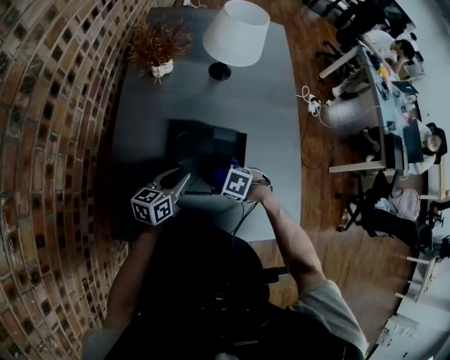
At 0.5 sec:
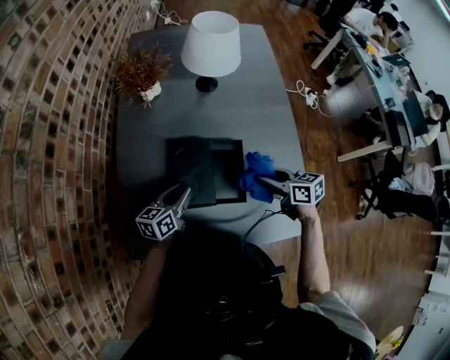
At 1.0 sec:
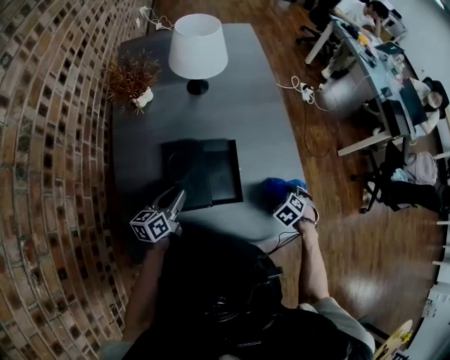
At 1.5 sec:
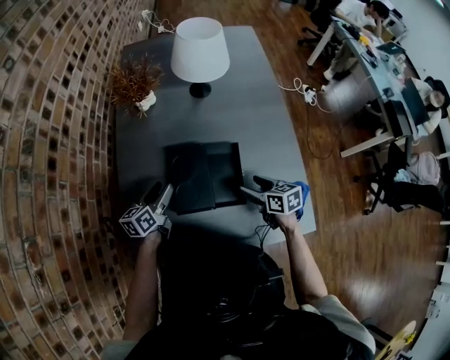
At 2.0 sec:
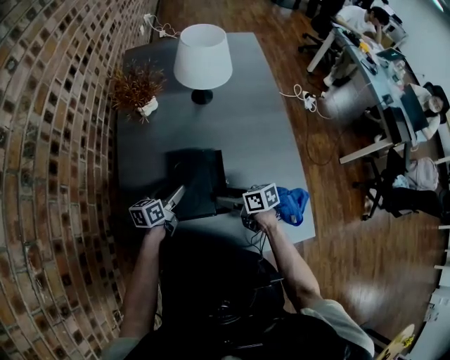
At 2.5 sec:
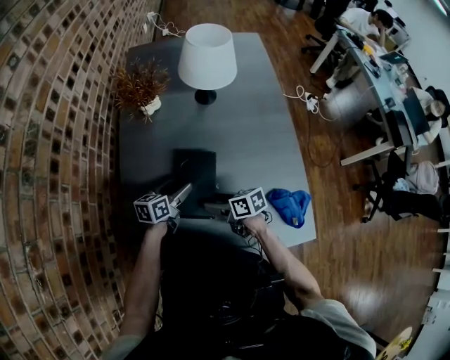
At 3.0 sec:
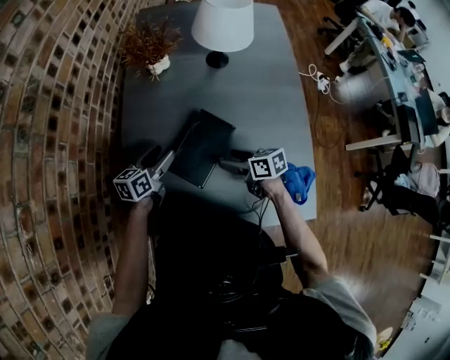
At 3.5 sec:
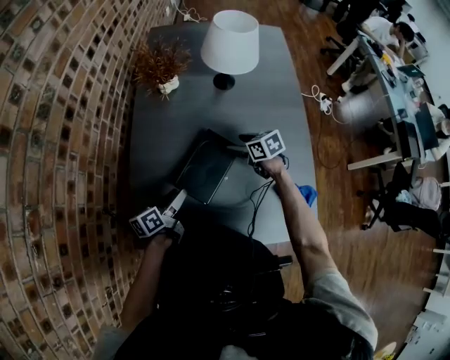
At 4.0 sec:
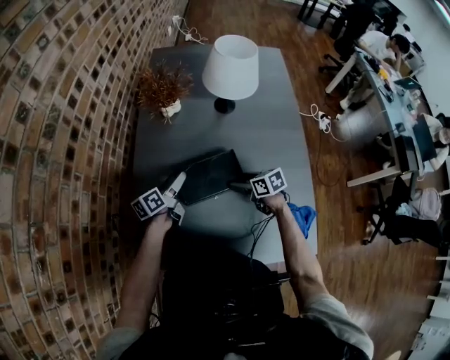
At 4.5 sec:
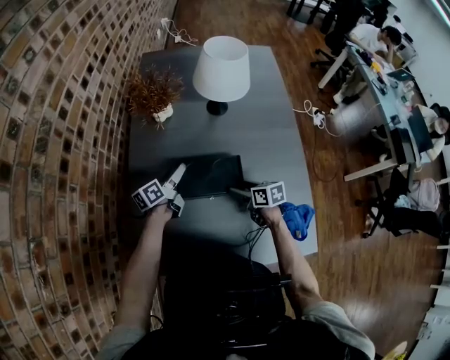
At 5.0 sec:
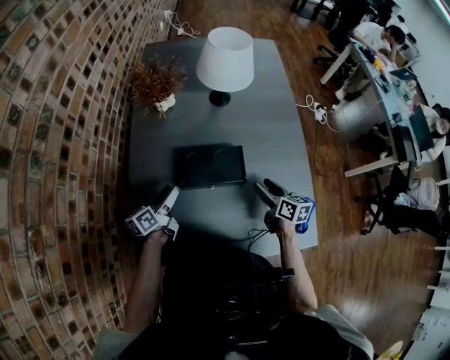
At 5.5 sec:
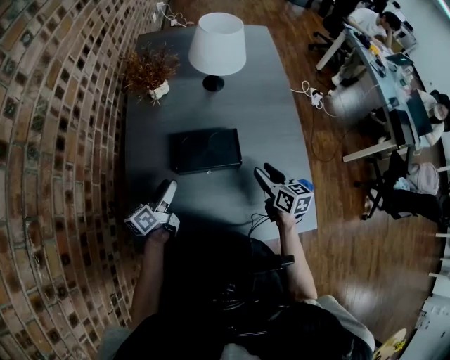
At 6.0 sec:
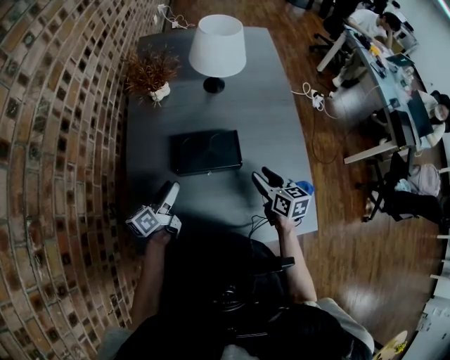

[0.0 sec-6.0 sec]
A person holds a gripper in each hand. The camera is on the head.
0.0 sec to 2.0 sec: The left gripper changes place by about 10 cm, and opens, while the right gripper moves up and down over about 15 cm, changing direction 2 times, tips its fingers upward by approximately 50 degrees, and opens its fingers.
2.0 sec to 4.0 sec: The grippers both shift forward by roughly 5 cm. The left gripper turns by approximately 20 degrees.
4.0 sec to 6.0 sec: The left gripper travels backward by some 10 cm. Meanwhile the right gripper shifts some 15 cm upward, backward and to the right, rotates approximately 30 degrees, and closes its fingers.

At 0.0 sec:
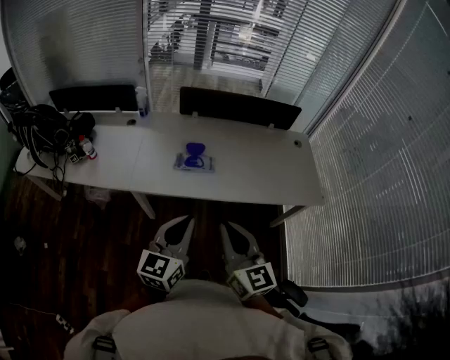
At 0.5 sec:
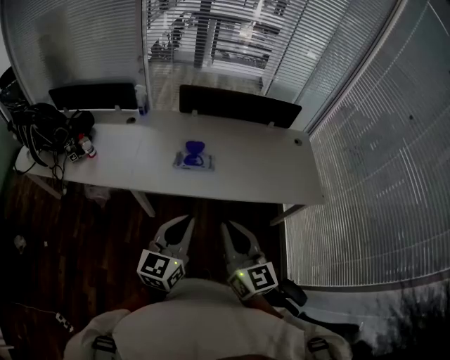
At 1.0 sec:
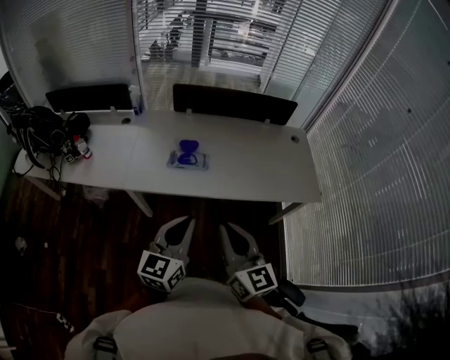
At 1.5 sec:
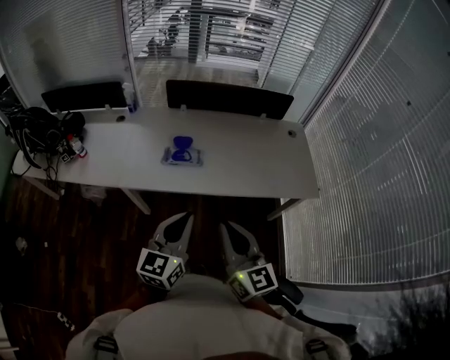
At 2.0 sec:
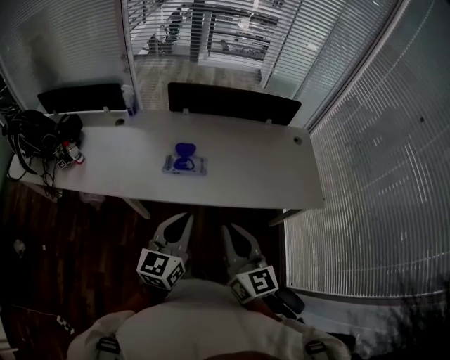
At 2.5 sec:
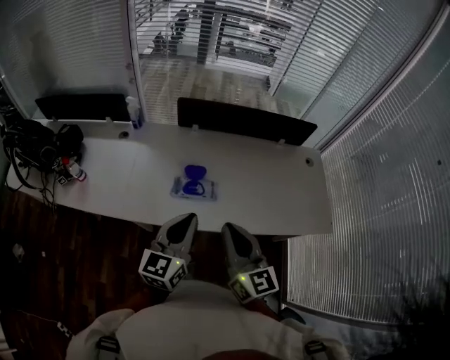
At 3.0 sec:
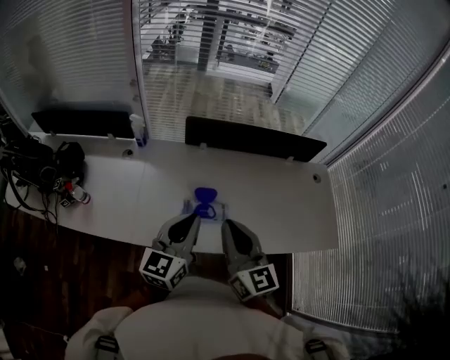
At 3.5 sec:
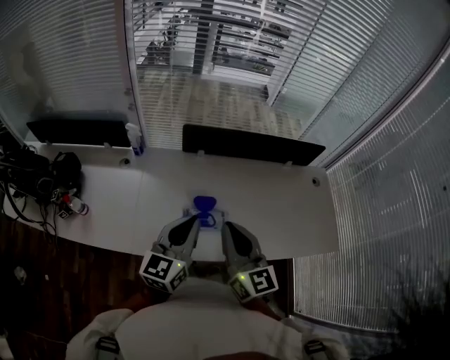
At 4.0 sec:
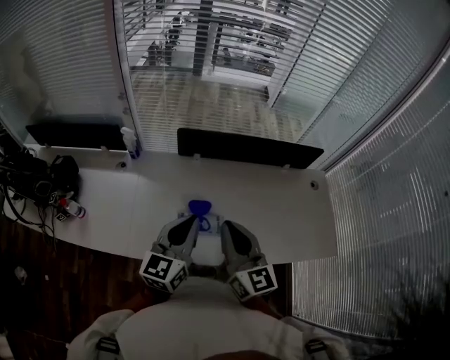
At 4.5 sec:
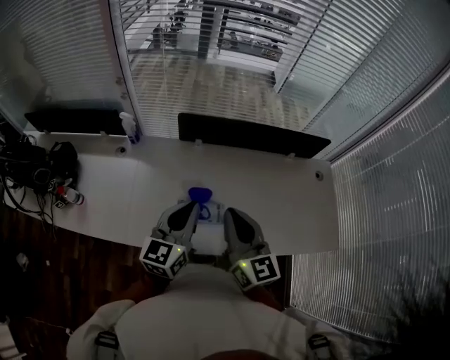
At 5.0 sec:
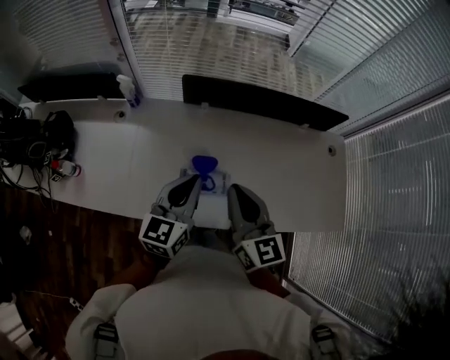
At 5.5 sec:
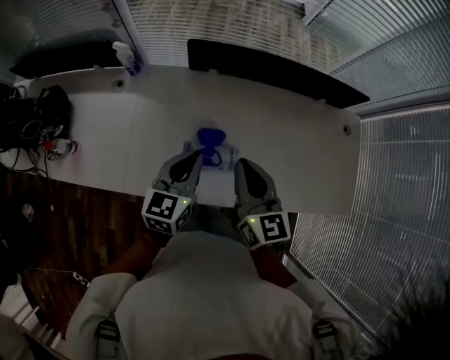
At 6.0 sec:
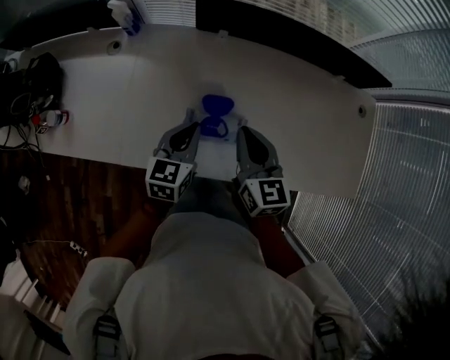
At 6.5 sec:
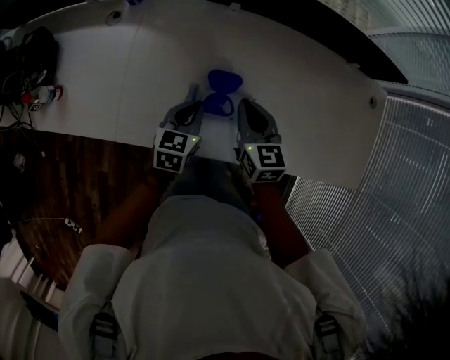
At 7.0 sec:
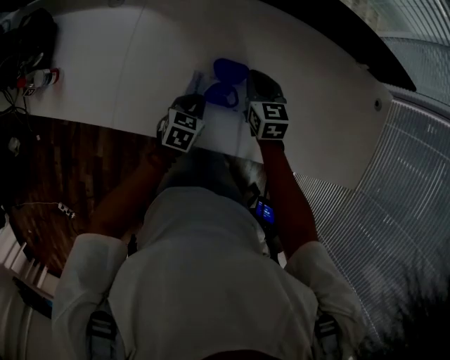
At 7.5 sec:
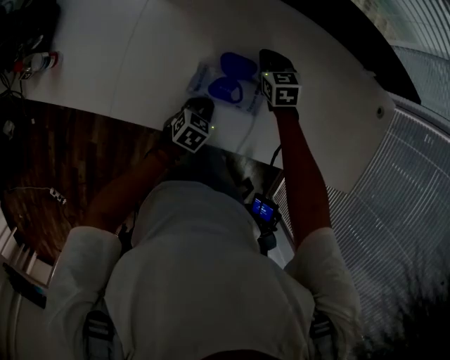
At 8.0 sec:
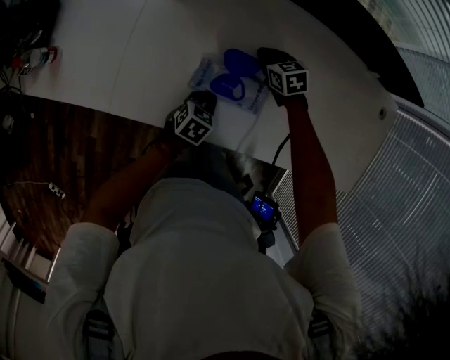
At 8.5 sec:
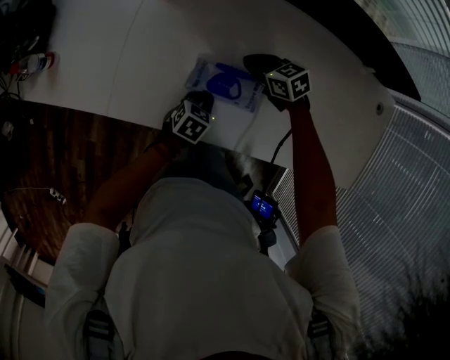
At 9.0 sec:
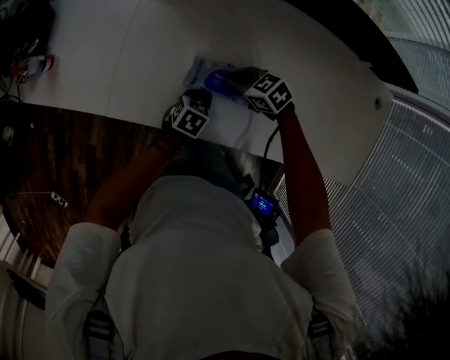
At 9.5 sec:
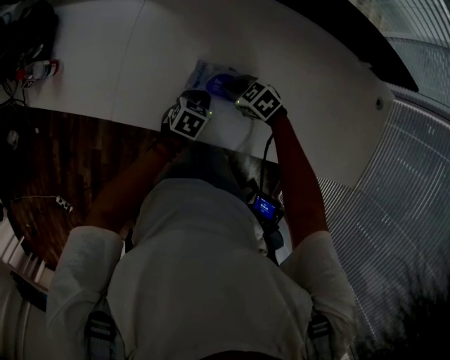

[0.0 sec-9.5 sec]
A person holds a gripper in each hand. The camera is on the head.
0.0 sec to 2.0 sec: The left gripper heads forward, covering approximately 5 cm. Meanwhile the right gripper goes some 10 cm forward and to the right.
2.0 sec to 4.0 sec: The grippers both shift forward by roughly 25 cm.
4.0 sec to 5.5 sec: The two grippers go roughly 15 cm downward and forward.
5.5 sec to 7.5 sec: The right gripper shifts about 35 cm downward and forward, and points its fingers approximately 30 degrees further downward. The left gripper heads downward, covering about 30 cm, and points its fingers roughly 30 degrees further downward.
7.5 sec to 9.5 sec: The right gripper moves about 15 cm, and swivels roughly 40 degrees.

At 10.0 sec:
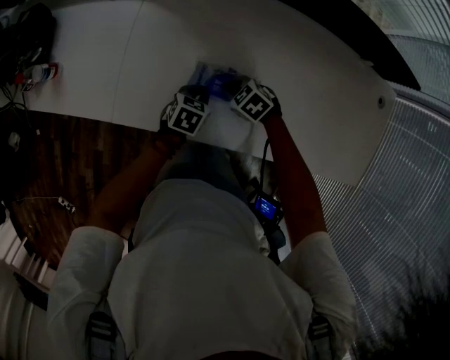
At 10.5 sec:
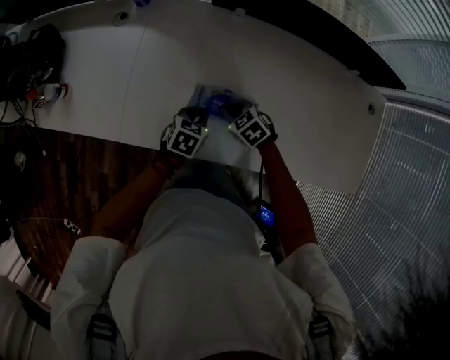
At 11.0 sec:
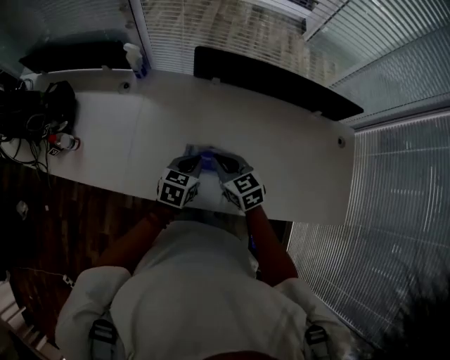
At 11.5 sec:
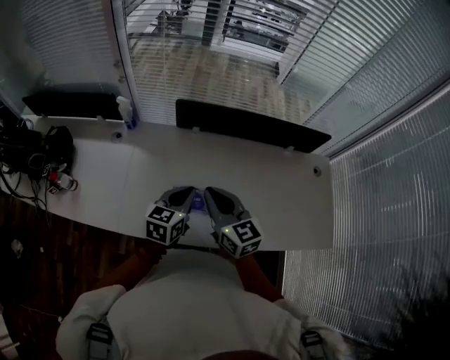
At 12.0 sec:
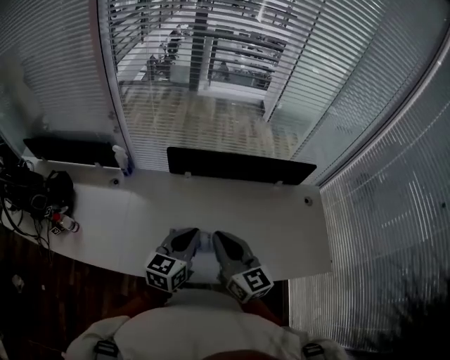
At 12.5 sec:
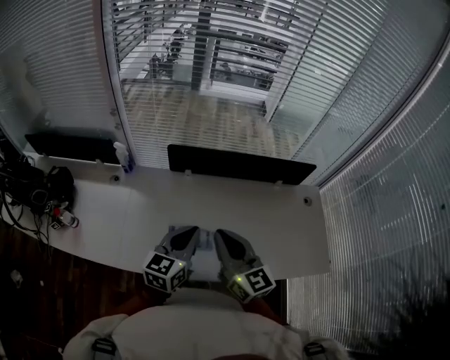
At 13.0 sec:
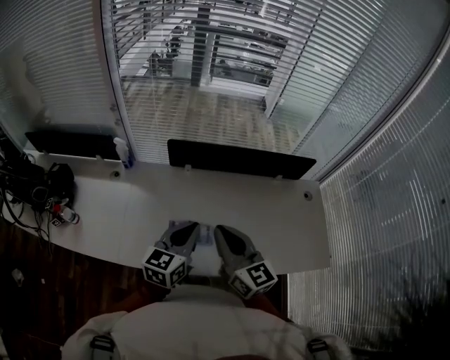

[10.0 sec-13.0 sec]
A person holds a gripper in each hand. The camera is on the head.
10.0 sec to 11.5 sec: Both grippers move upward, roughly 30 cm. The right gripper tilts its fingers roughly 50 degrees upward, while the left gripper angles its fingers upward, by approximately 30 degrees.
11.5 sec to 13.0 sec: The right gripper travels upward and to the right by roughly 10 cm; the left gripper heads upward, covering roughly 10 cm.

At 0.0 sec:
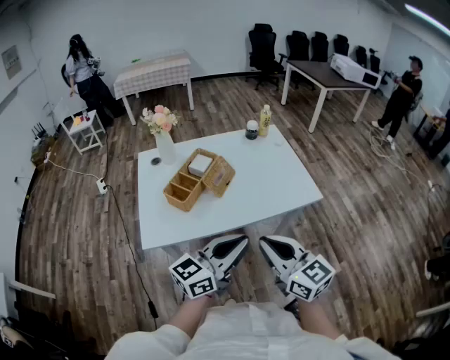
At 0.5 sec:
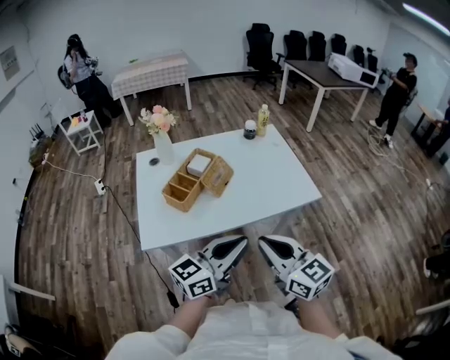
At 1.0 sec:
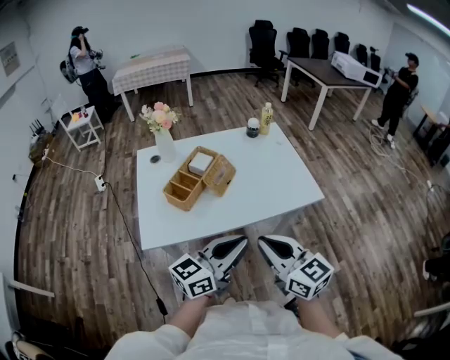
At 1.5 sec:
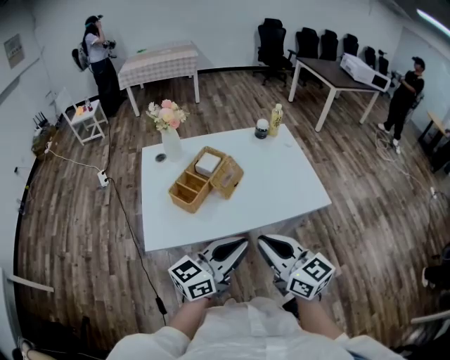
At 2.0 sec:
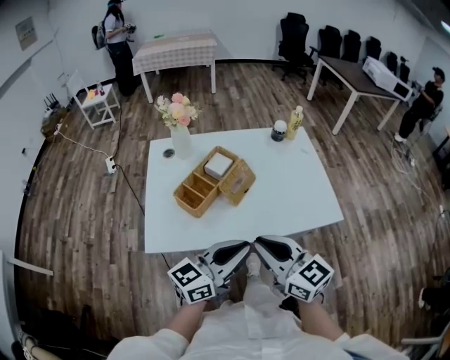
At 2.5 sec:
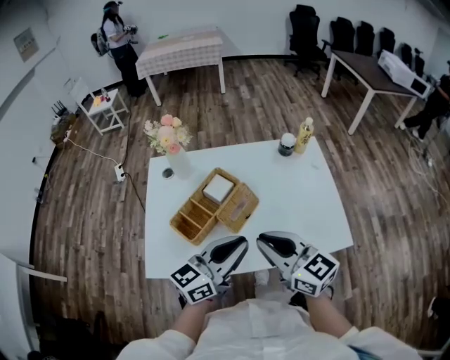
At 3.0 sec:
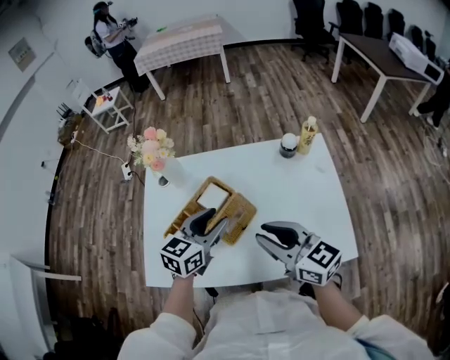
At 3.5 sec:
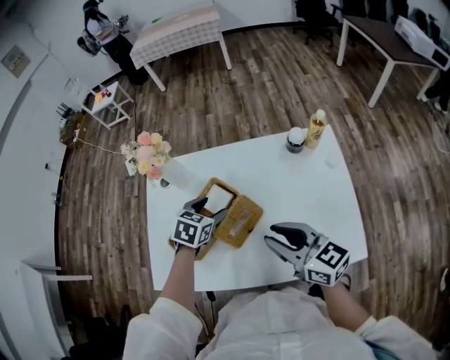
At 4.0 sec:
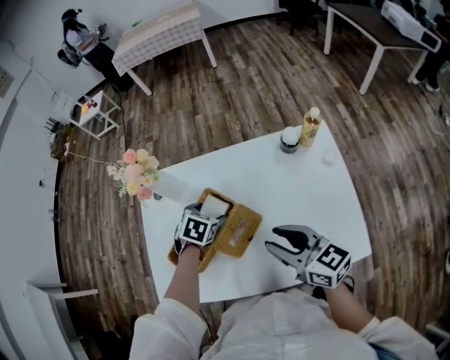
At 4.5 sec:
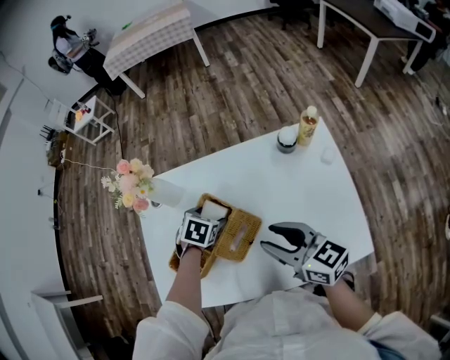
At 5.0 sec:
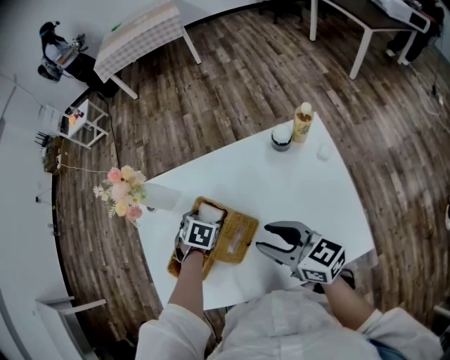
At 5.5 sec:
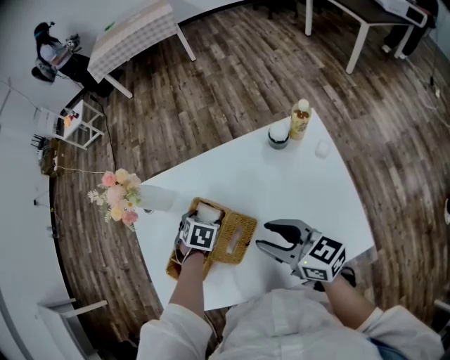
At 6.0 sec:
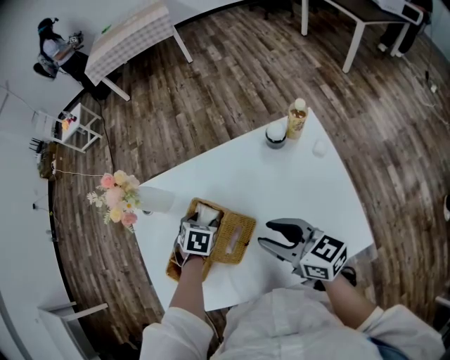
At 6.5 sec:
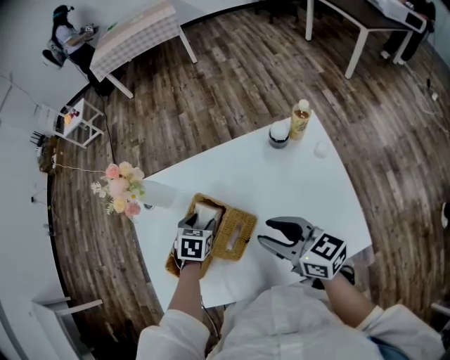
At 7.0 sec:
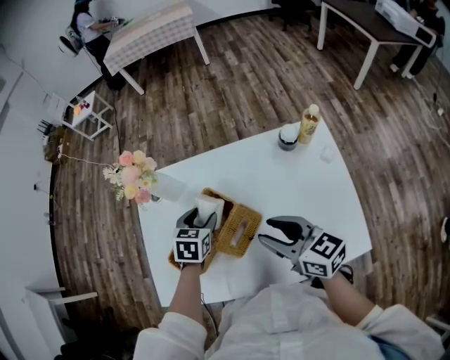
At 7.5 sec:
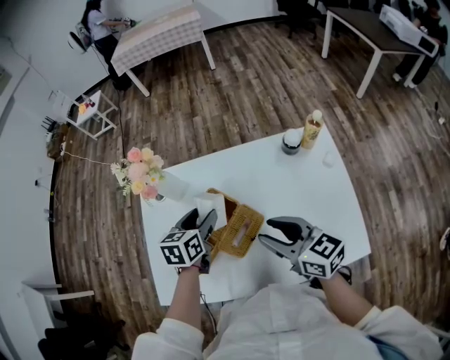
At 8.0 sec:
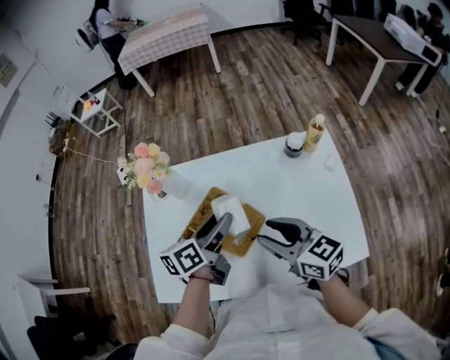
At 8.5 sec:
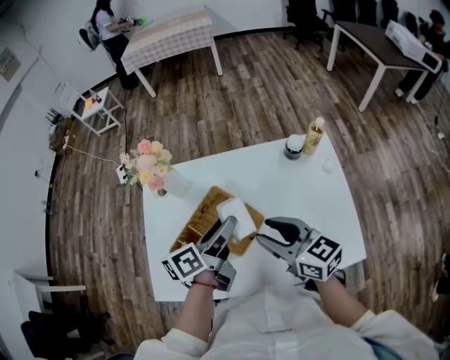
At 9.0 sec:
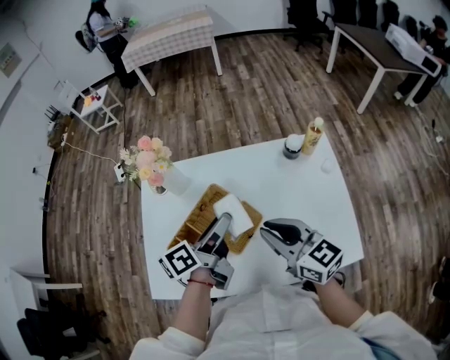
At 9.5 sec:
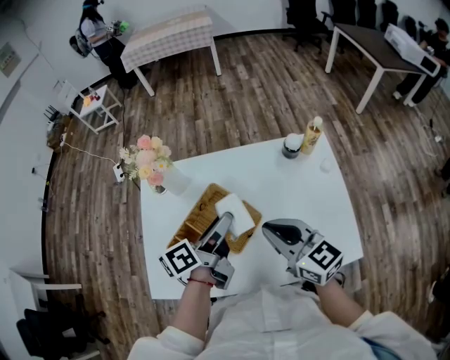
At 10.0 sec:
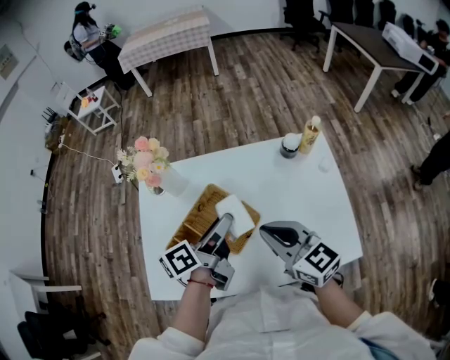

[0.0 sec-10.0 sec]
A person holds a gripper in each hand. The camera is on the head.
0.0 sec to 2.0 sec: The left gripper moves forward, some 10 cm, while the right gripper is displaced forward and to the left by approximately 10 cm.
2.0 sec to 4.0 sec: The right gripper shifts about 30 cm forward and to the right, and opens its fingers; the left gripper is displaced forward and downward by about 40 cm, tilts its fingers about 70 degrees downward, and opens its fingers.
4.0 sec to 6.0 sec: The grippers stay close to where they were, moving slightly.
6.0 sec to 8.0 sec: The left gripper travels upward by about 15 cm, and points its fingers about 50 degrees further upward; the right gripper moves roughly 5 cm.
8.0 sec to 10.0 sec: The right gripper closes. The left gripper turns by approximately 20 degrees.
